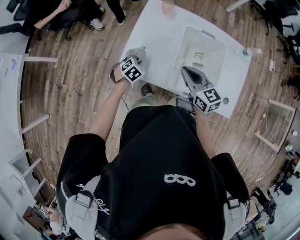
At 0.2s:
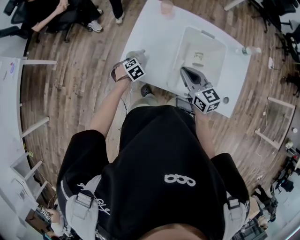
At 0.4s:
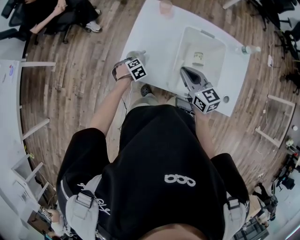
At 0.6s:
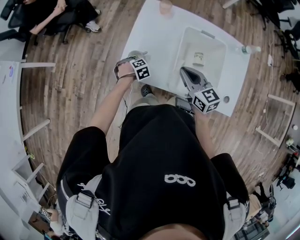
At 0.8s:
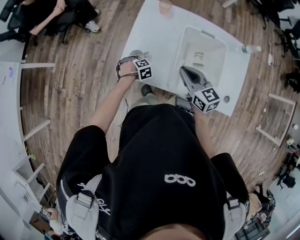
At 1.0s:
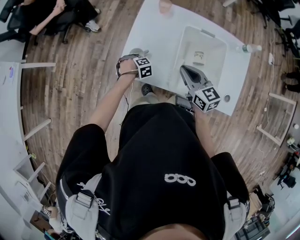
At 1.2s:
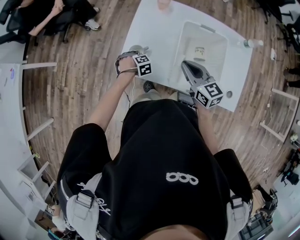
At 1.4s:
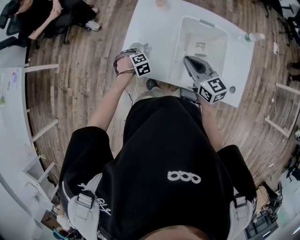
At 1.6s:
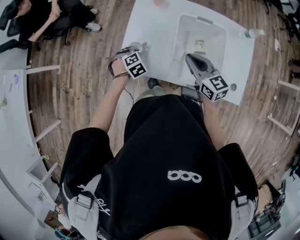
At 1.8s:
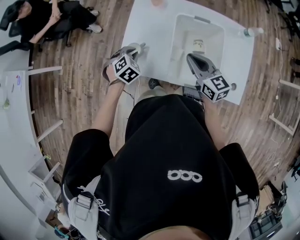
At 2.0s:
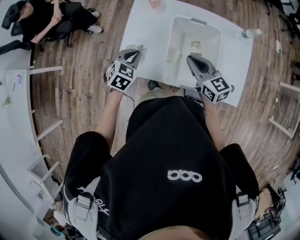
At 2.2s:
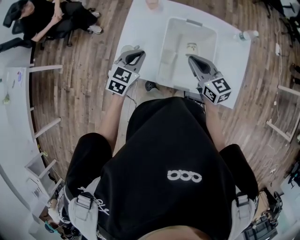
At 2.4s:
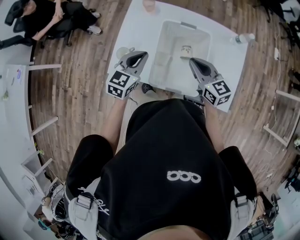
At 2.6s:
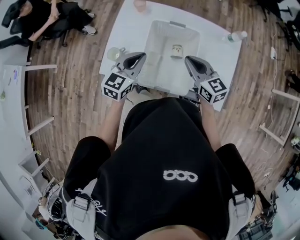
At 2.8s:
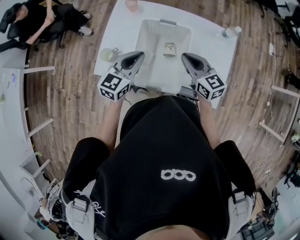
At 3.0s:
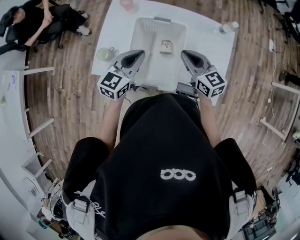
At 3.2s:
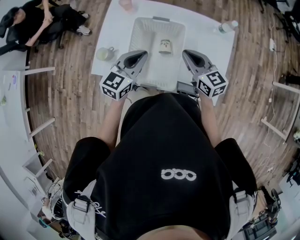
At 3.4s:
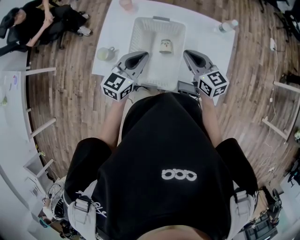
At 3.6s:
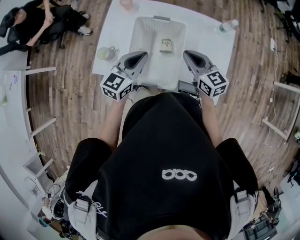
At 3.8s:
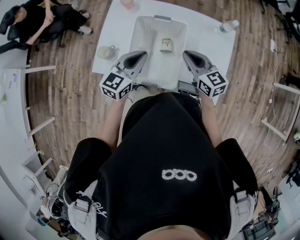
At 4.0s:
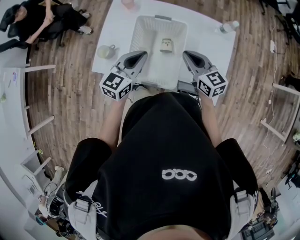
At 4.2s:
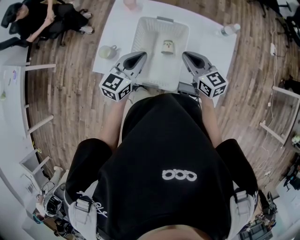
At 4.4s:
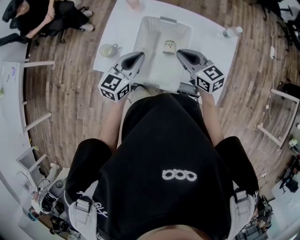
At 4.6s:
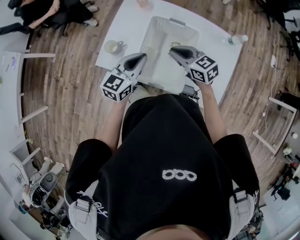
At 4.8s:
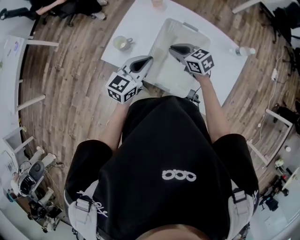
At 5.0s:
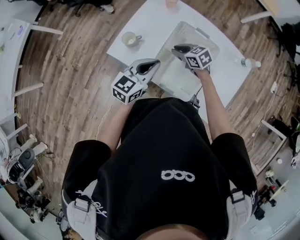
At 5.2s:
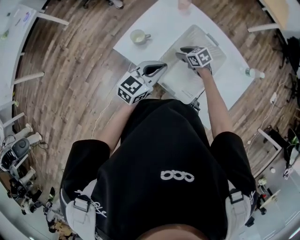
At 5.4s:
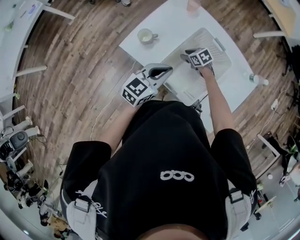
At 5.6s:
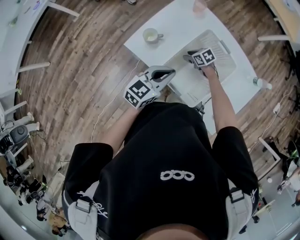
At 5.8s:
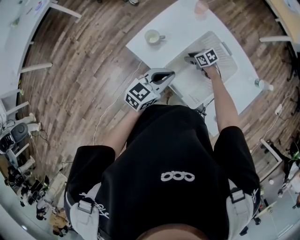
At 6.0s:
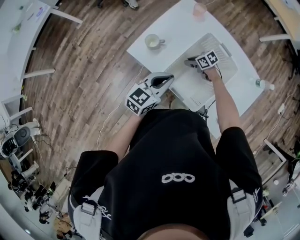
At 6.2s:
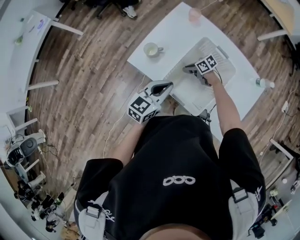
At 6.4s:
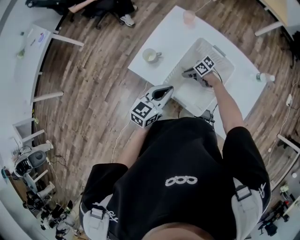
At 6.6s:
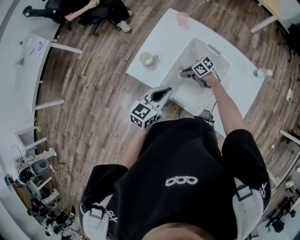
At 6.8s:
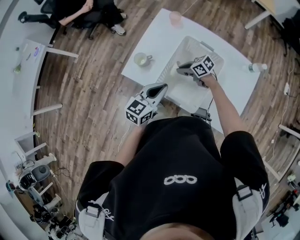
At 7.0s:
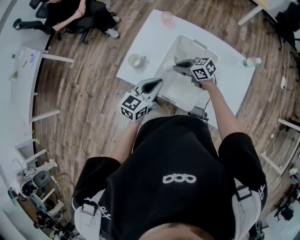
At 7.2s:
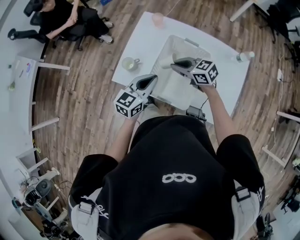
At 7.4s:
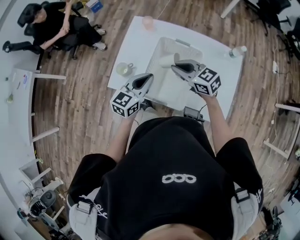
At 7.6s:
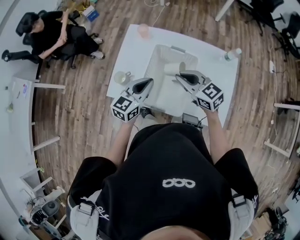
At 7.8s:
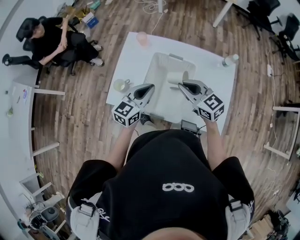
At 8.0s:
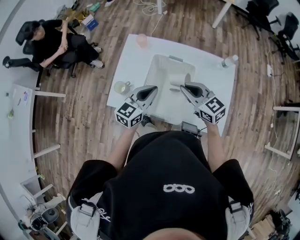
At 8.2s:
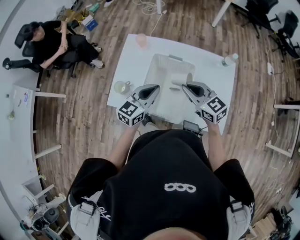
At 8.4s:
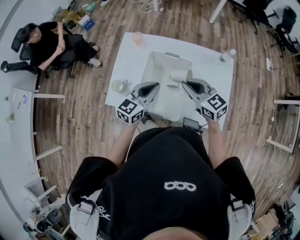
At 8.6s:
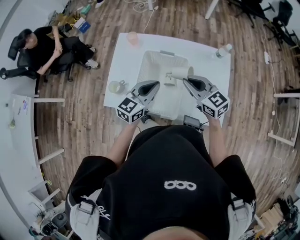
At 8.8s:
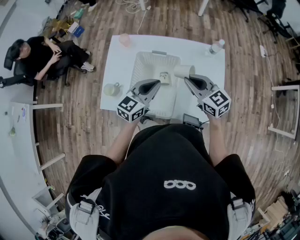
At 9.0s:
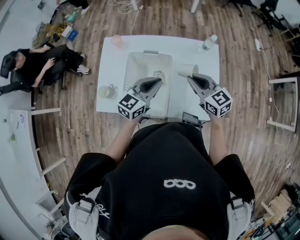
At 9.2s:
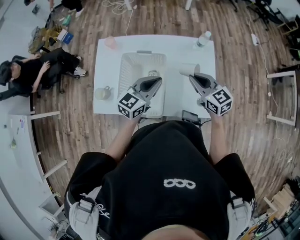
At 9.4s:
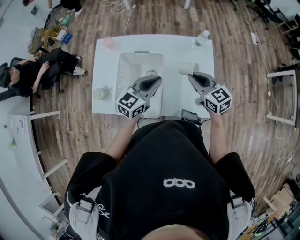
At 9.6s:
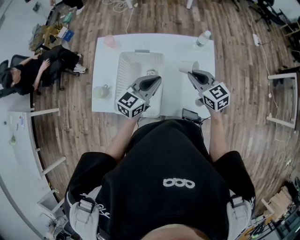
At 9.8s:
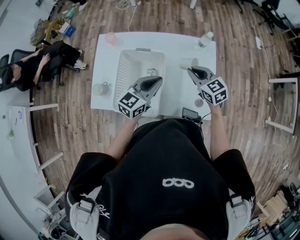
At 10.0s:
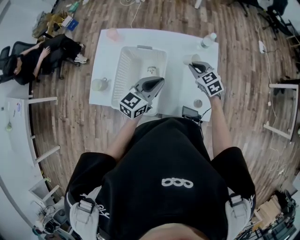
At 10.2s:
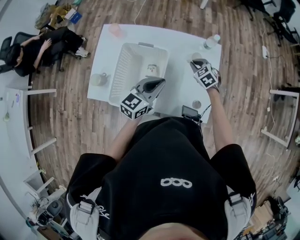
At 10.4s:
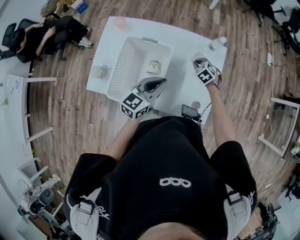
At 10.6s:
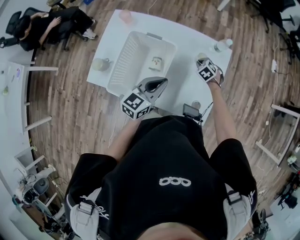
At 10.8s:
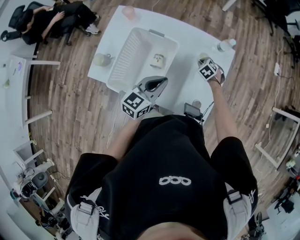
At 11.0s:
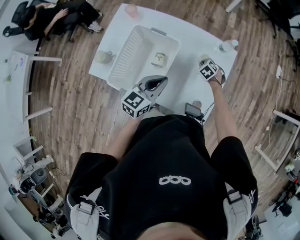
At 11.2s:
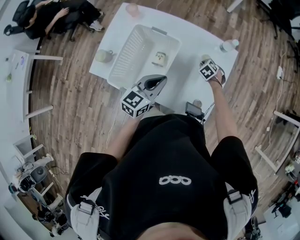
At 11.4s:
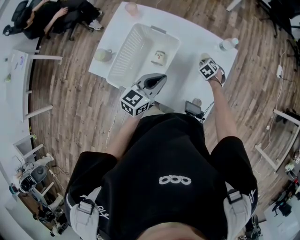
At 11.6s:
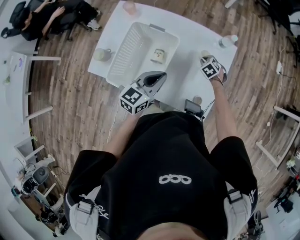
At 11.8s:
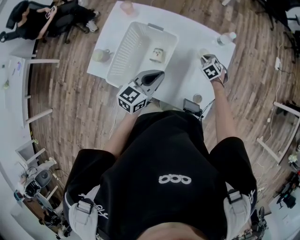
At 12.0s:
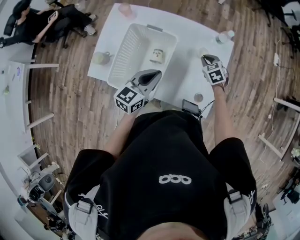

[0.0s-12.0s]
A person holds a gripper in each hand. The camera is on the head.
0.0s to 1.6s: The left gripper moves some 5 cm downward and comes back, and turns by some 20 degrees.
1.6s to 3.0s: The right gripper heads to the right, covering about 20 cm; the left gripper goes some 35 cm to the right and upward, and tips its fingers upward by about 50 degrees.
3.0s to 4.4s: The grippers move only a little.
4.4s to 6.0s: The left gripper moves roughly 10 cm. The right gripper heads downward, covering about 25 cm, and turns by approximately 60 degrees.
6.0s to 7.6s: The right gripper goes about 30 cm upward, and changes its angle by about 50 degrees. The left gripper shifts by approximately 10 cm.
7.6s to 9.0s: Both grippers travel together to the right, some 15 cm. The right gripper swivels roughly 20 degrees.
9.0s to 10.4s: The left gripper heads to the right, covering approximately 5 cm, while the right gripper shifts roughly 30 cm downward and forward, and points its fingers approximately 40 degrees further downward.
10.4s to 12.0s: The right gripper goes downward and returns, some 10 cm each way.

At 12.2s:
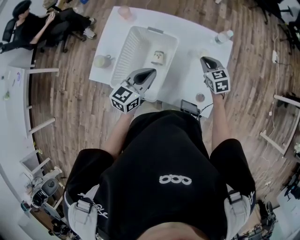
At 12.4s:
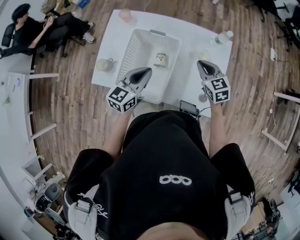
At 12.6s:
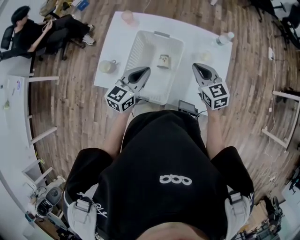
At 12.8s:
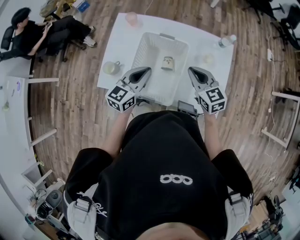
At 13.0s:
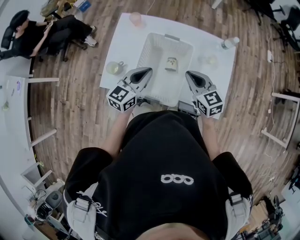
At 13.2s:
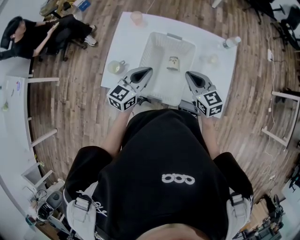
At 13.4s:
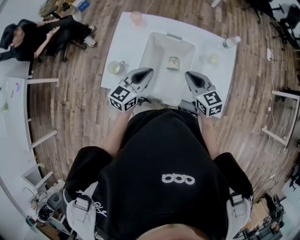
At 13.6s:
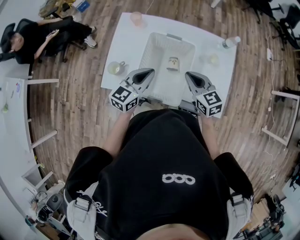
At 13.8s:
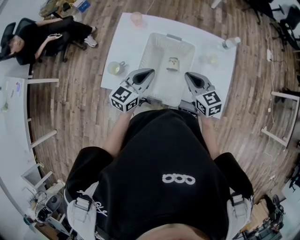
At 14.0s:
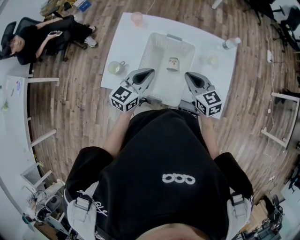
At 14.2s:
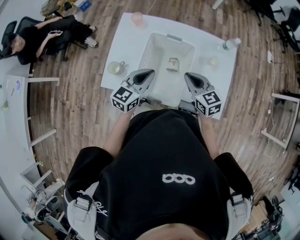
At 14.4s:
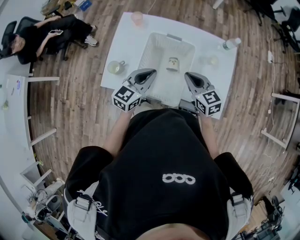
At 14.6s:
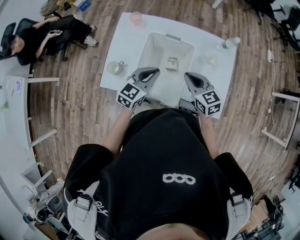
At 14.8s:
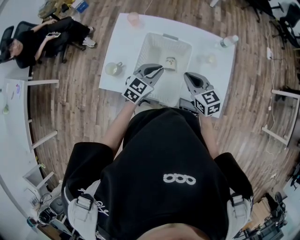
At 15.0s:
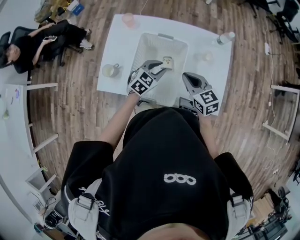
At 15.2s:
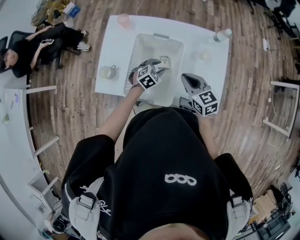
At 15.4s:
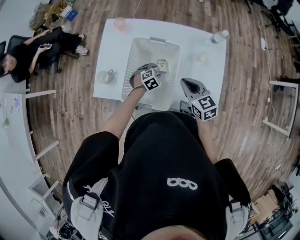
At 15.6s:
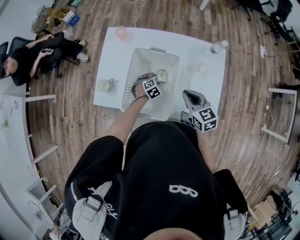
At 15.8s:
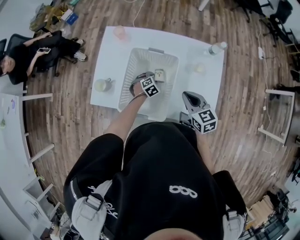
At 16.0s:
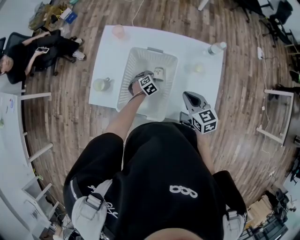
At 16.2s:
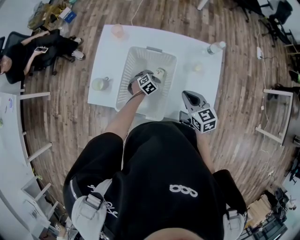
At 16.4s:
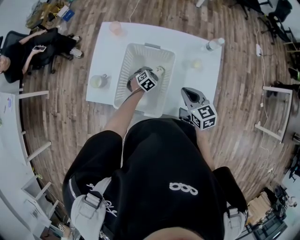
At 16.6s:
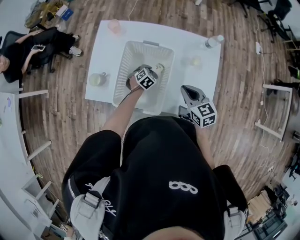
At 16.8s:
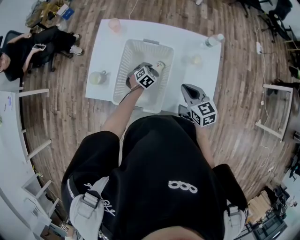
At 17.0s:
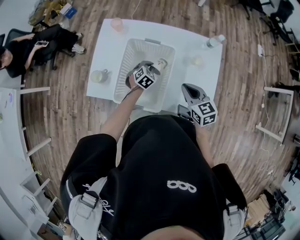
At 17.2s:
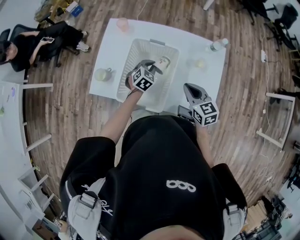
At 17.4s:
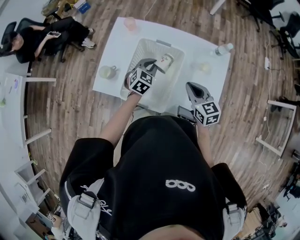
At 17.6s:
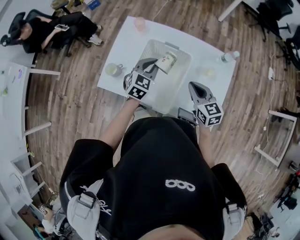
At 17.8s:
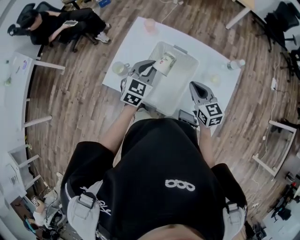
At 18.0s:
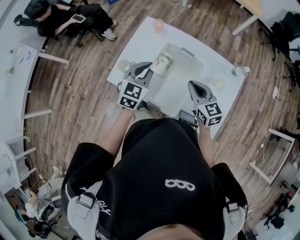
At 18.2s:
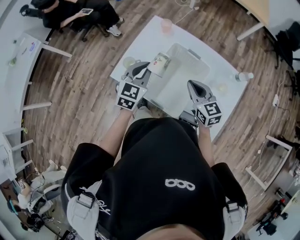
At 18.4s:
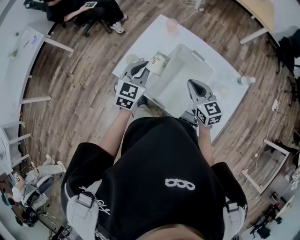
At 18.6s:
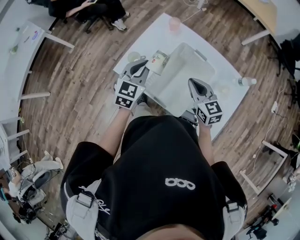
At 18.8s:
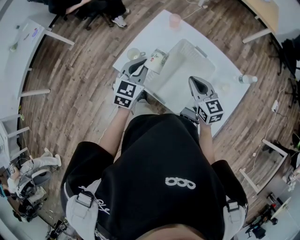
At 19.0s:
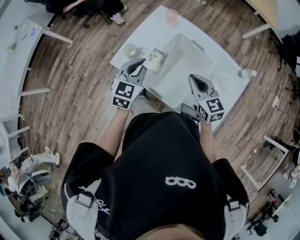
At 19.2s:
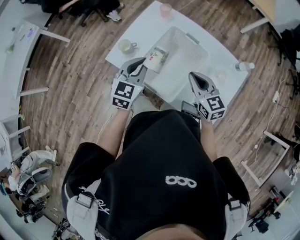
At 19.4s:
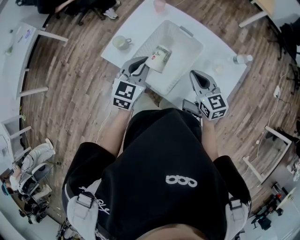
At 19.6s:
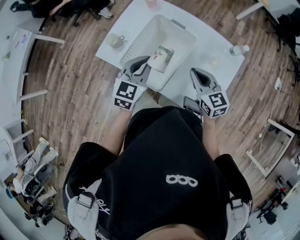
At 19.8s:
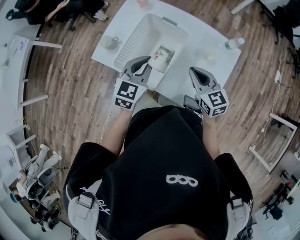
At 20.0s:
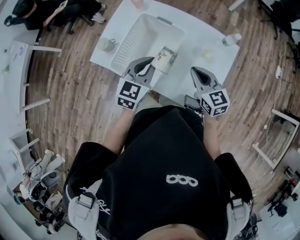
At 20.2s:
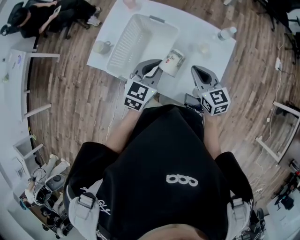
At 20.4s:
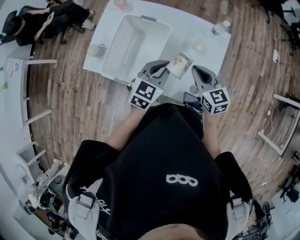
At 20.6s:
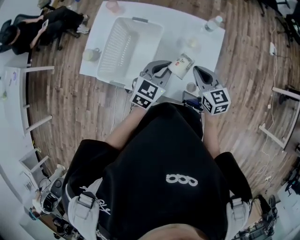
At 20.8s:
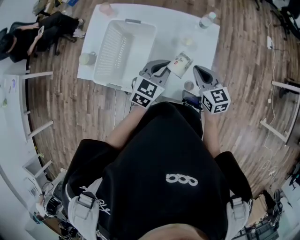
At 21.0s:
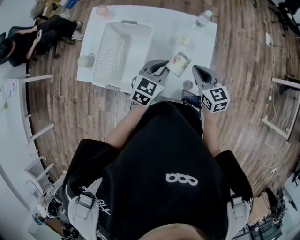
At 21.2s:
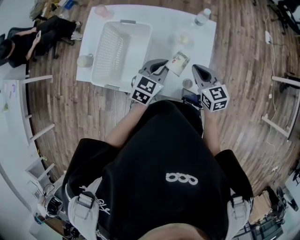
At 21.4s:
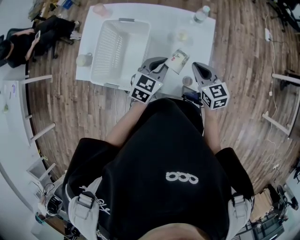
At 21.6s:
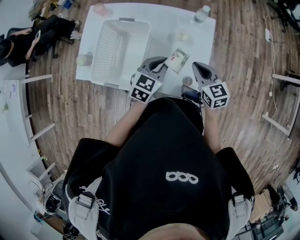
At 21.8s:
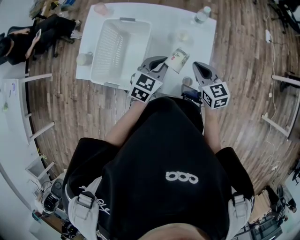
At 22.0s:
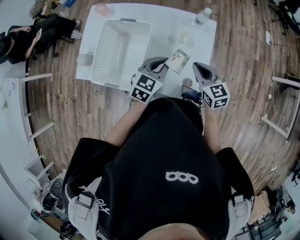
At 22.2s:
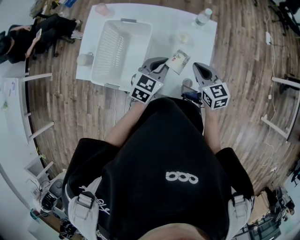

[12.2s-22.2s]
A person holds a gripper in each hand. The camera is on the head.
12.2s to 13.6s: The left gripper moves to the left, about 10 cm. Meanwhile the right gripper shifts roughly 25 cm to the left, upward and backward.
13.6s to 15.0s: The left gripper shifts roughly 15 cm downward and to the right, changes its angle by some 30 degrees, and opens its fingers.
15.0s to 16.4s: The right gripper shifts some 5 cm to the right. The left gripper goes roughly 20 cm downward, changes its angle by approximately 20 degrees, and opens, then closes once more.
16.4s to 18.0s: The right gripper is displaced to the left and upward by approximately 10 cm. The left gripper moves upward and to the left, about 35 cm, and tips its fingers upward by about 30 degrees.
18.0s to 19.4s: The right gripper moves roughly 5 cm to the left and comes back. Meanwhile the left gripper heads backward, covering about 10 cm, and goes to the left and returns, roughly 10 cm each way.
19.4s to 20.8s: The right gripper shifts by some 20 cm, and rotates roughly 20 degrees. Meanwhile the left gripper moves approximately 30 cm, and changes its angle by roughly 30 degrees.
20.8s to 22.2s: The grippers make only small movements.

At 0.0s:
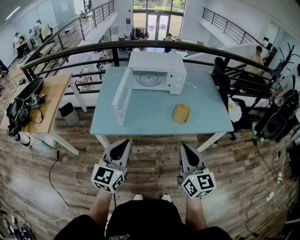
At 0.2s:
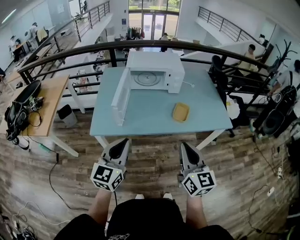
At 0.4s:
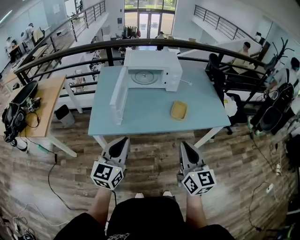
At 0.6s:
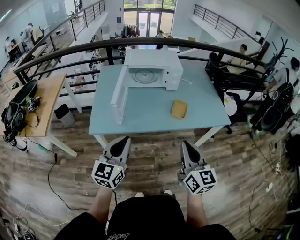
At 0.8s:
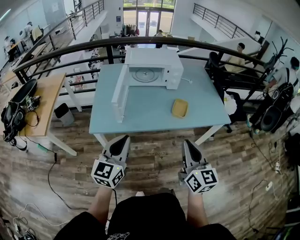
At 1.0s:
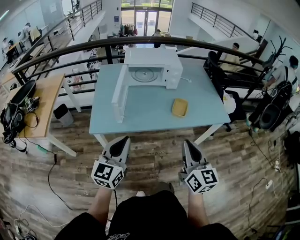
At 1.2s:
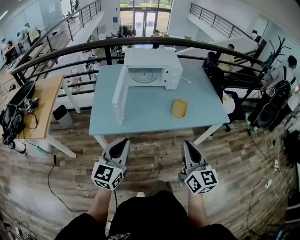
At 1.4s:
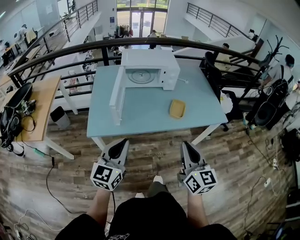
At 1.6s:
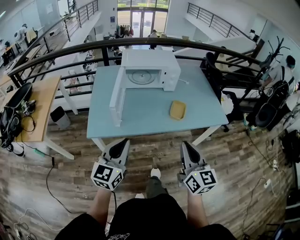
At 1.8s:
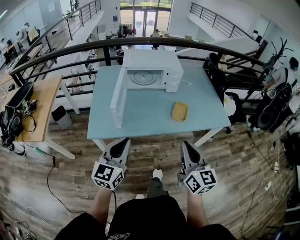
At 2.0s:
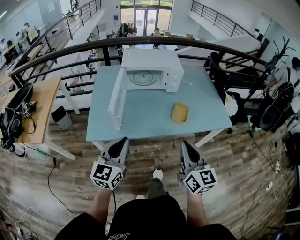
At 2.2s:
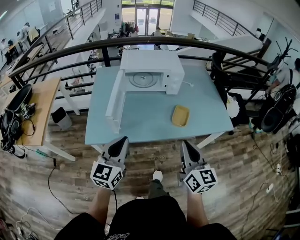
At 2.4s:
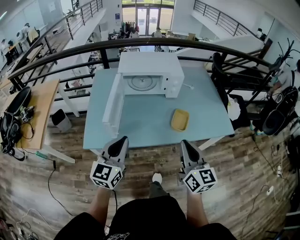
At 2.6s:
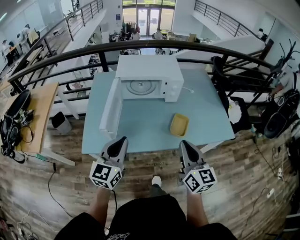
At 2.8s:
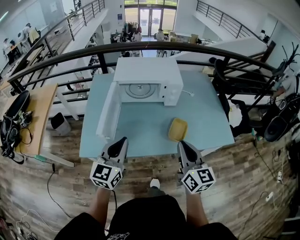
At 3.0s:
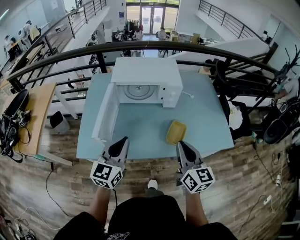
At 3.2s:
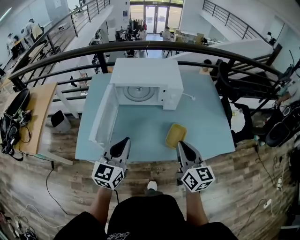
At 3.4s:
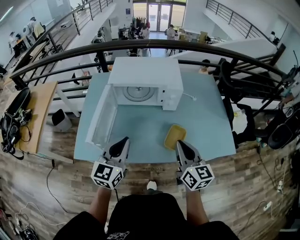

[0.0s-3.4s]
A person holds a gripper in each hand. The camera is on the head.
0.0s to 1.6s: The grippers make only small movements.
1.6s to 3.4s: The grippers both shift forward by roughly 25 cm.
